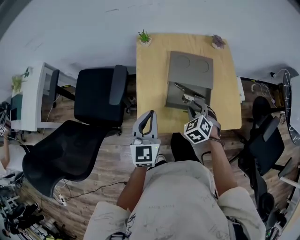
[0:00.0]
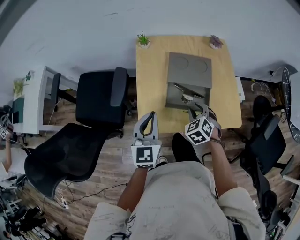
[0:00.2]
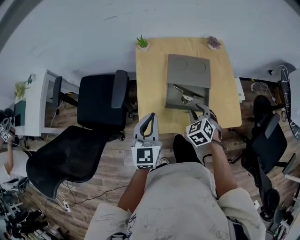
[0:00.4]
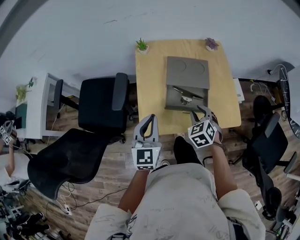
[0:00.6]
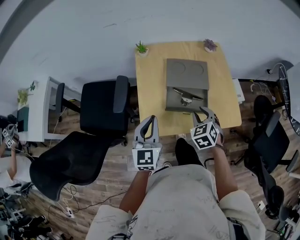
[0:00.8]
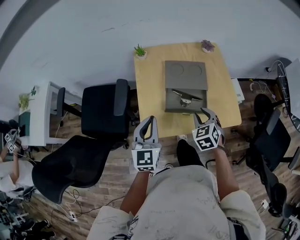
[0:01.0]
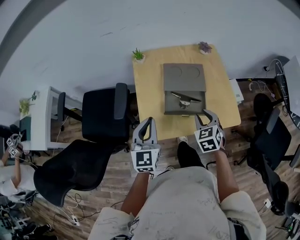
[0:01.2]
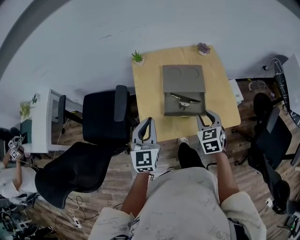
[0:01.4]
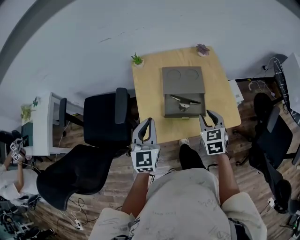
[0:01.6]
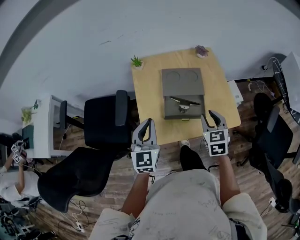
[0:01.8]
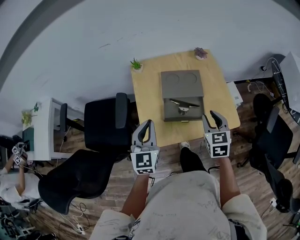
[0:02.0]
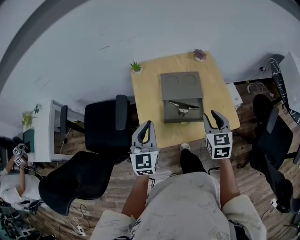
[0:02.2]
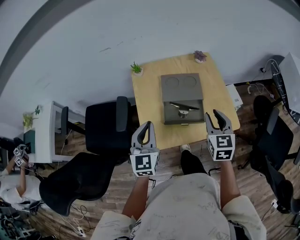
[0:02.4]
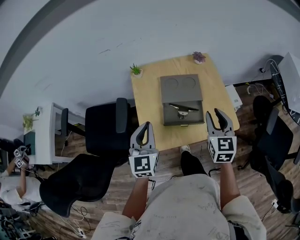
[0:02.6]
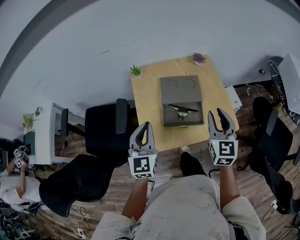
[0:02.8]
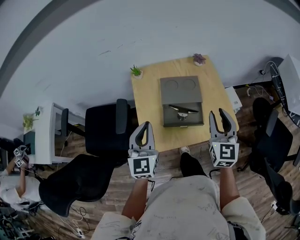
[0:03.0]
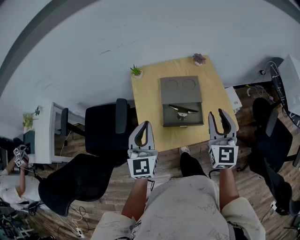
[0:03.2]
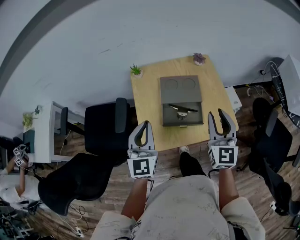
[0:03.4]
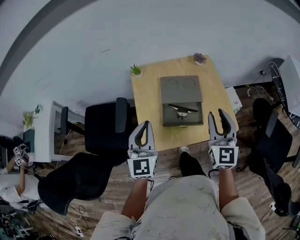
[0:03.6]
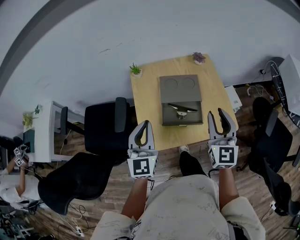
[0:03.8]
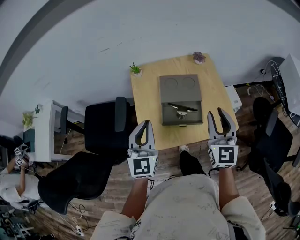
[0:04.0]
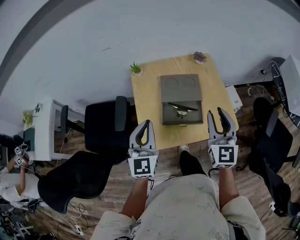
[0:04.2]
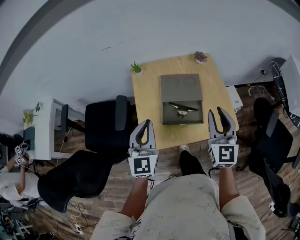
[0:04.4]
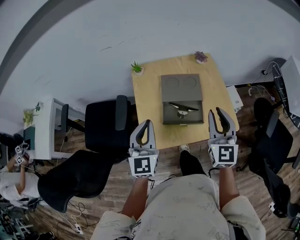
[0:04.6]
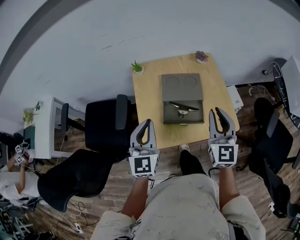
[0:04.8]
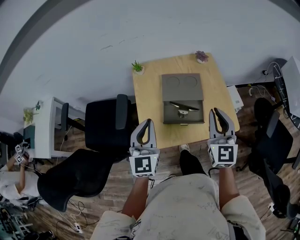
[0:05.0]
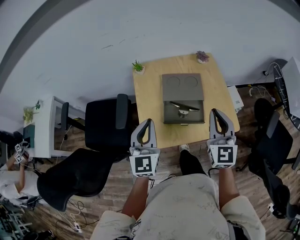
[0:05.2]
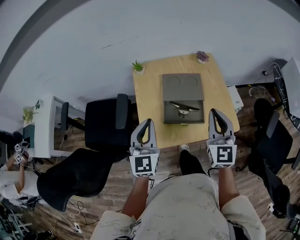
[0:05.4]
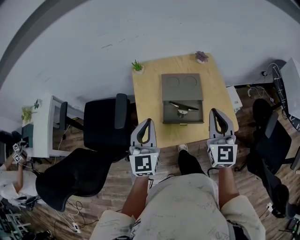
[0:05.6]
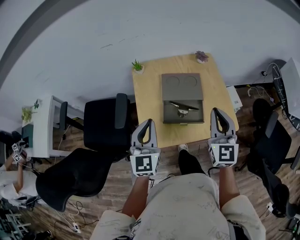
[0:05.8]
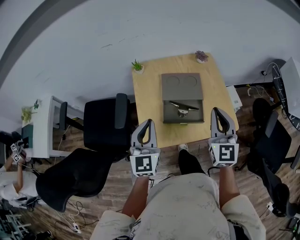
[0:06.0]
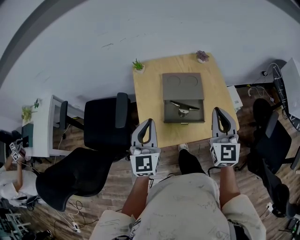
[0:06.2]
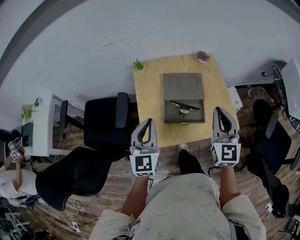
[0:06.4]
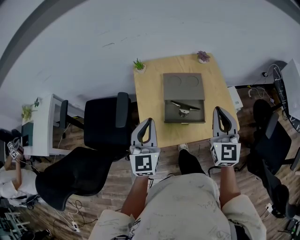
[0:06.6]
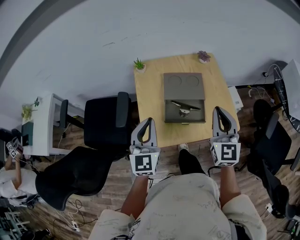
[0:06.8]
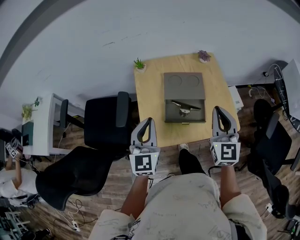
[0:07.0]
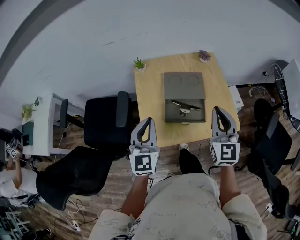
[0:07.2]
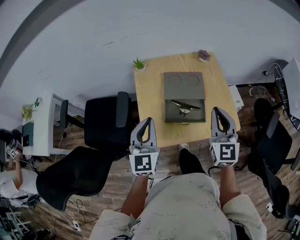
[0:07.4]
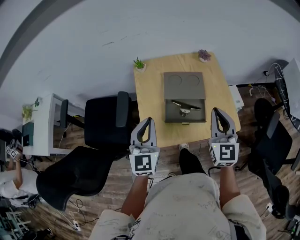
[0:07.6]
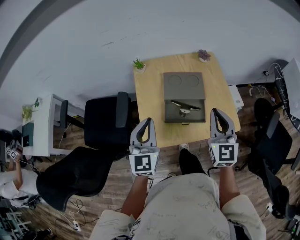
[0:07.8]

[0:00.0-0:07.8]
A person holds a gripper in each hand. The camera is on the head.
0:00.0 to 0:01.6: The right gripper is displaced upward and to the right by approximately 10 cm, and rotates about 40 degrees.
0:01.6 to 0:03.2: The left gripper travels upward by roughly 5 cm, while the right gripper travels upward by approximately 15 cm, and angles its fingers upward, by roughly 30 degrees.
0:03.2 to 0:04.6: Neither gripper changes place.
0:04.6 to 0:06.2: The two grippers keep their place.
0:06.2 to 0:07.8: The grippers stay close to where they were, moving slightly.

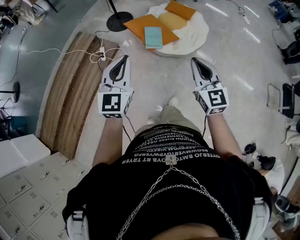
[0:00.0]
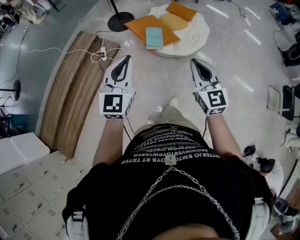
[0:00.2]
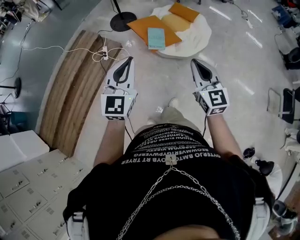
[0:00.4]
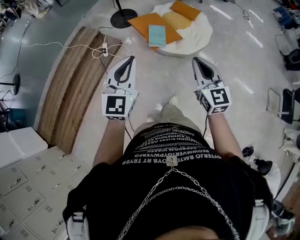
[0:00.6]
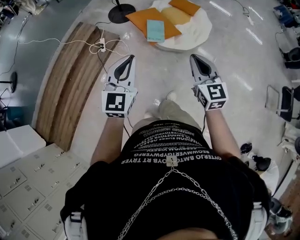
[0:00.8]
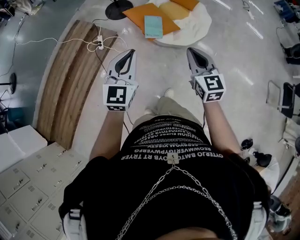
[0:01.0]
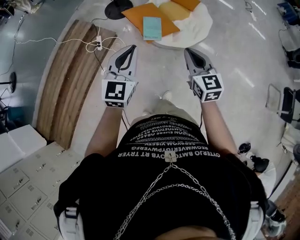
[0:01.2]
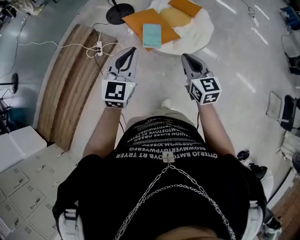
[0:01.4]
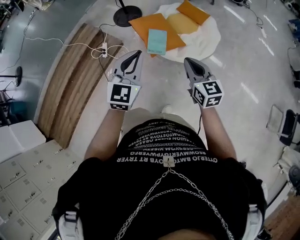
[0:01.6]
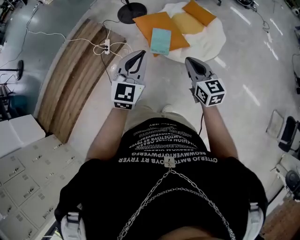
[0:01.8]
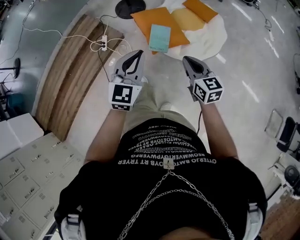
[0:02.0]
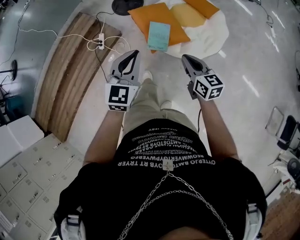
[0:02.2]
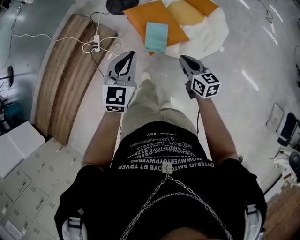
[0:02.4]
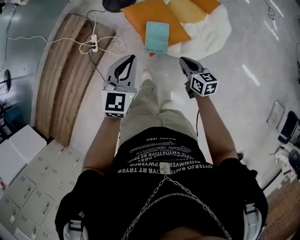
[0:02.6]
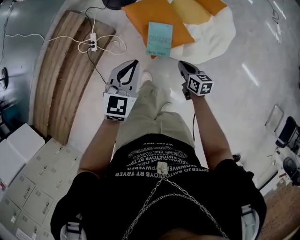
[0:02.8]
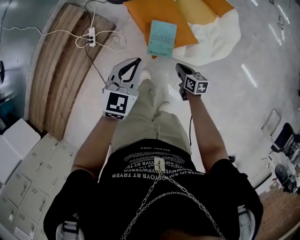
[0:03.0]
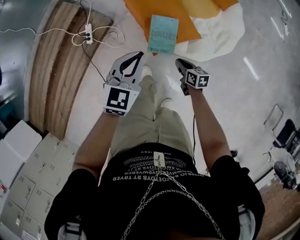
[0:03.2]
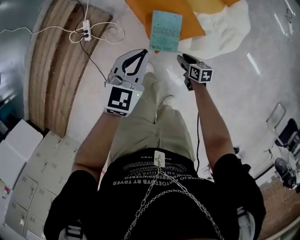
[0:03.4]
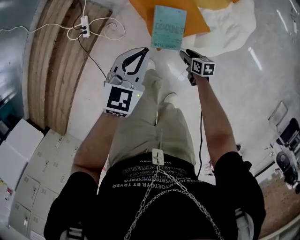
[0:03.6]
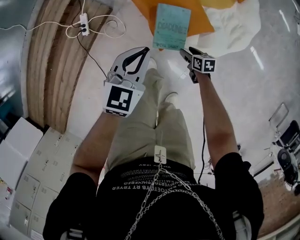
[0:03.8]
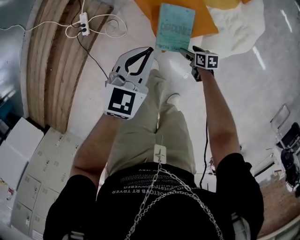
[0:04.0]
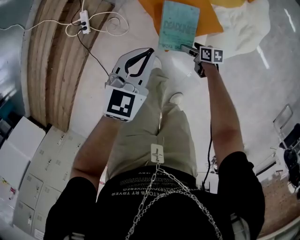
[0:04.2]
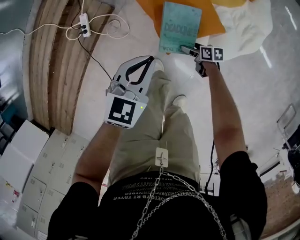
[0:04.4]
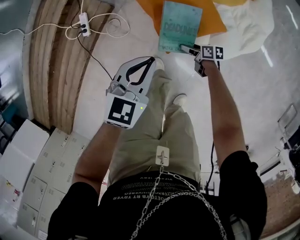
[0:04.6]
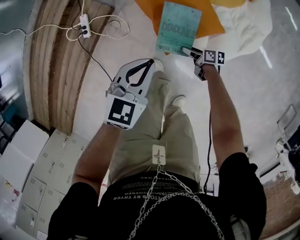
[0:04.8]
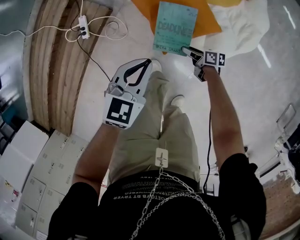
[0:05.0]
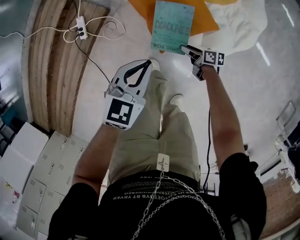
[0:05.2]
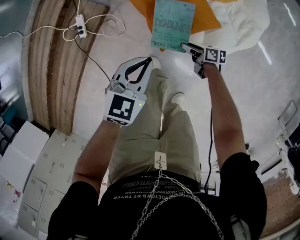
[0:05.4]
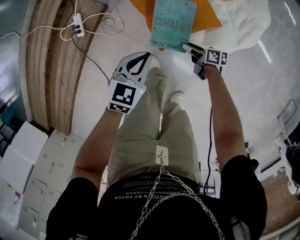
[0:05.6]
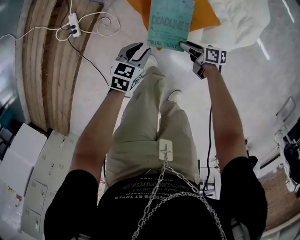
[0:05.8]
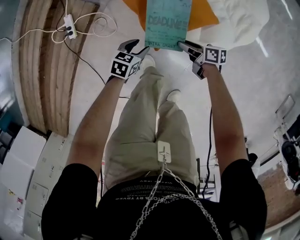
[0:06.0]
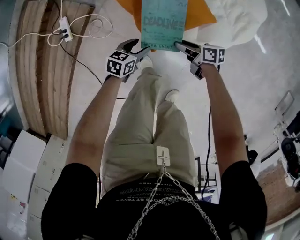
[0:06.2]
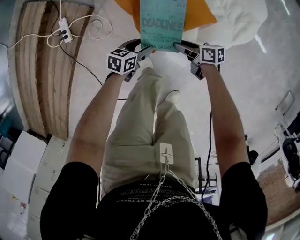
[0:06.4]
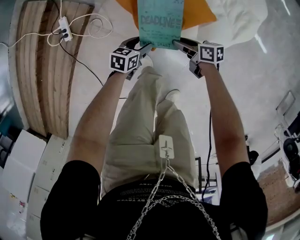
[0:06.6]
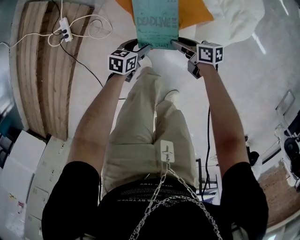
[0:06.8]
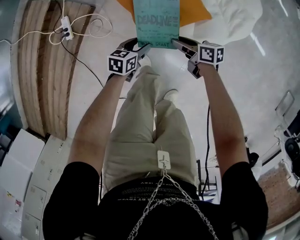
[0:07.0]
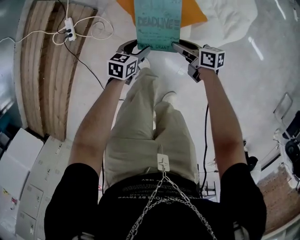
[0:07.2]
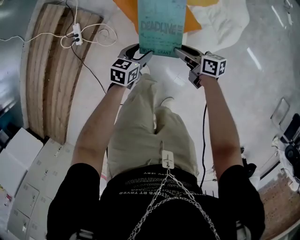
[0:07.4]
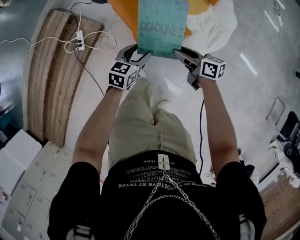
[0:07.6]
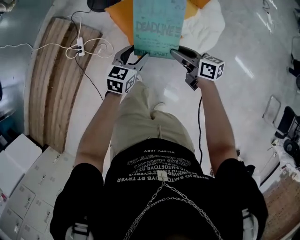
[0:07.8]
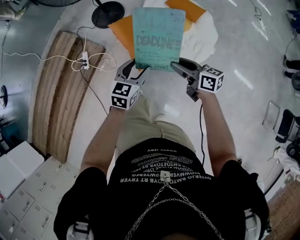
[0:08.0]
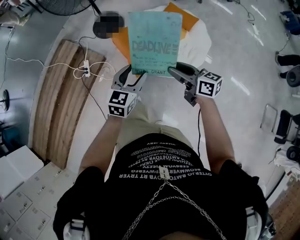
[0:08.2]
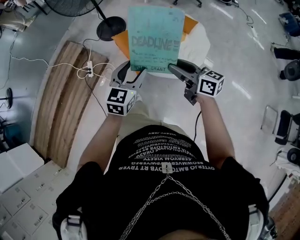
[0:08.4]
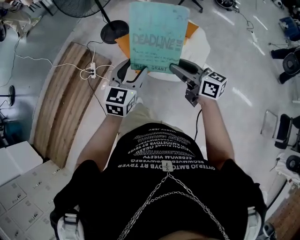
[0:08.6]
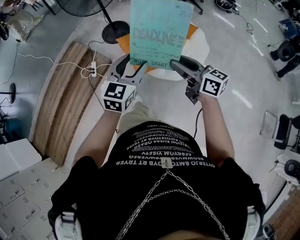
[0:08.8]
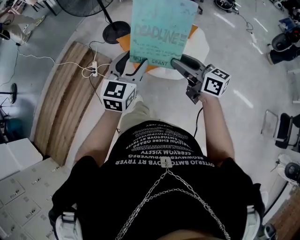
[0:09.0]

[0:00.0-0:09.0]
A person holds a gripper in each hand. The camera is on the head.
0:00.0 to 0:01.6: The left gripper heads forward and to the right, covering approximately 20 cm, while the right gripper is displaced forward and downward by some 20 cm.
0:01.6 to 0:03.0: The left gripper moves forward and downward, some 35 cm. Meanwhile the right gripper heads downward and forward, covering approximately 50 cm, and swivels approximately 40 degrees.
0:03.0 to 0:04.4: The grippers both shift downward by some 25 cm. The right gripper turns by some 20 degrees, and opens up.
0:04.4 to 0:06.0: The right gripper closes its fingers. Meanwhile the left gripper travels downward by approximately 25 cm, swivels some 30 degrees, and opens up.
0:06.0 to 0:07.6: The two grippers go some 30 cm upward. The right gripper turns by approximately 20 degrees. Meanwhile the left gripper turns by approximately 20 degrees.
0:07.6 to 0:09.0: Both grippers move upward and backward, about 50 cm. The left gripper turns by approximately 30 degrees. The right gripper swivels about 30 degrees.

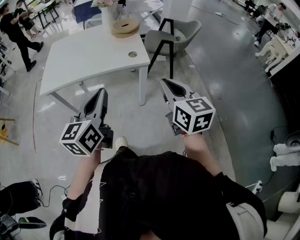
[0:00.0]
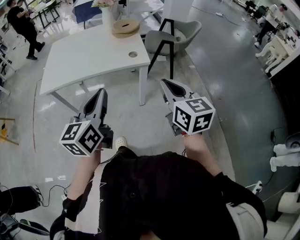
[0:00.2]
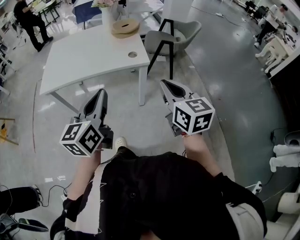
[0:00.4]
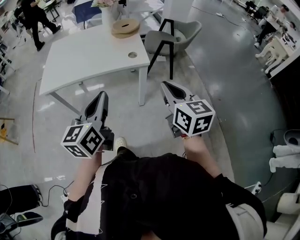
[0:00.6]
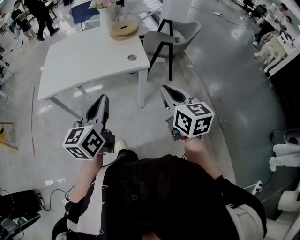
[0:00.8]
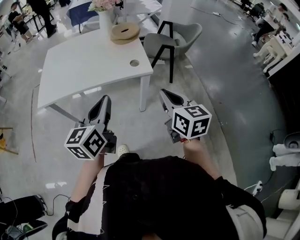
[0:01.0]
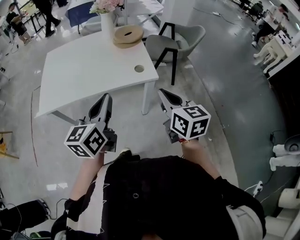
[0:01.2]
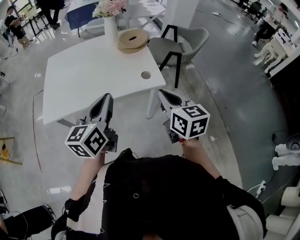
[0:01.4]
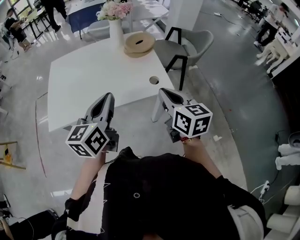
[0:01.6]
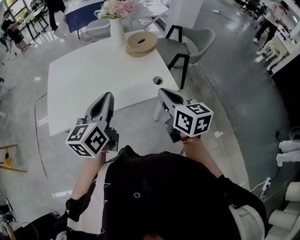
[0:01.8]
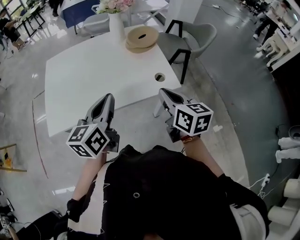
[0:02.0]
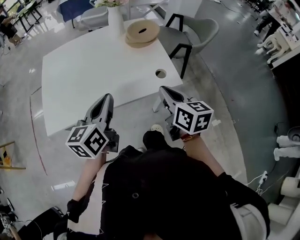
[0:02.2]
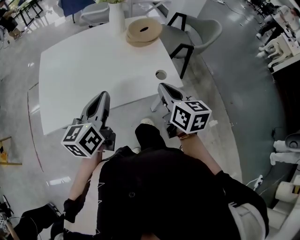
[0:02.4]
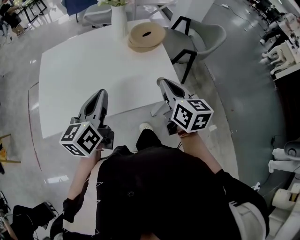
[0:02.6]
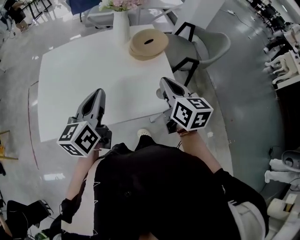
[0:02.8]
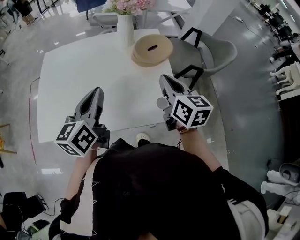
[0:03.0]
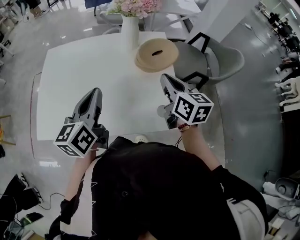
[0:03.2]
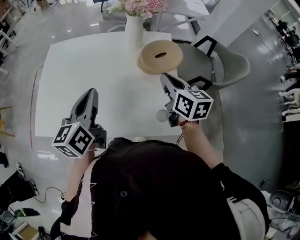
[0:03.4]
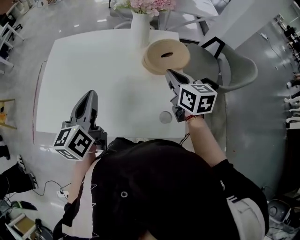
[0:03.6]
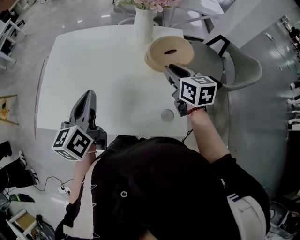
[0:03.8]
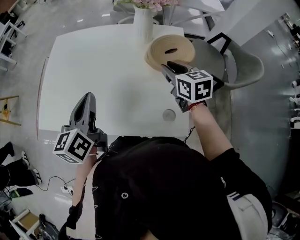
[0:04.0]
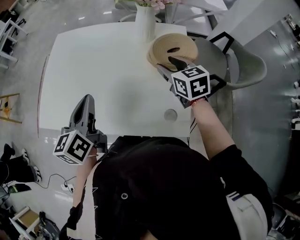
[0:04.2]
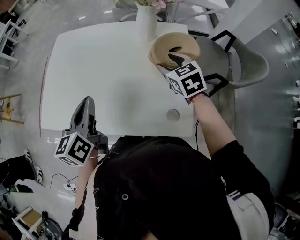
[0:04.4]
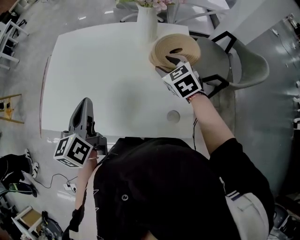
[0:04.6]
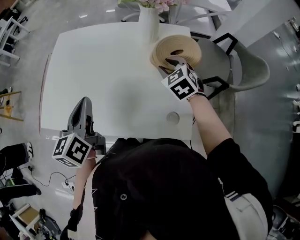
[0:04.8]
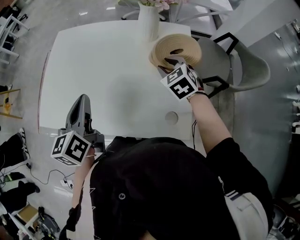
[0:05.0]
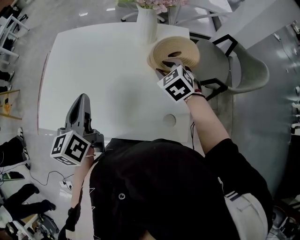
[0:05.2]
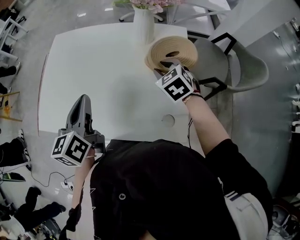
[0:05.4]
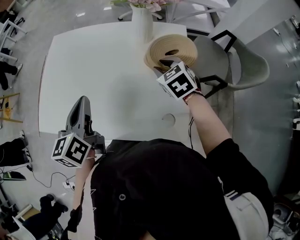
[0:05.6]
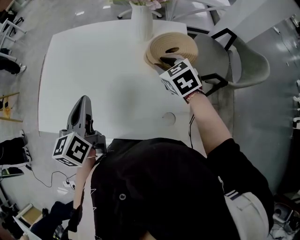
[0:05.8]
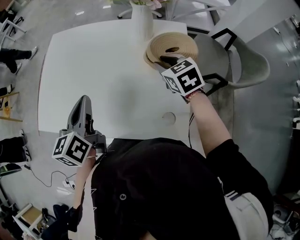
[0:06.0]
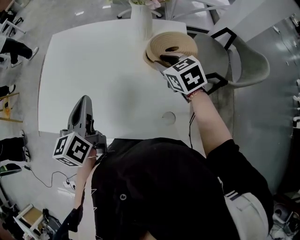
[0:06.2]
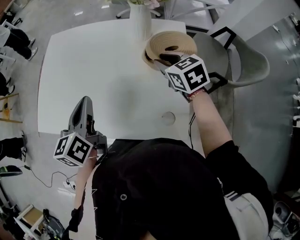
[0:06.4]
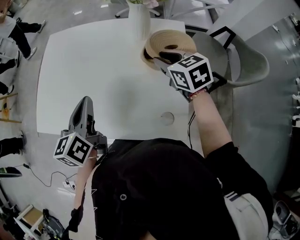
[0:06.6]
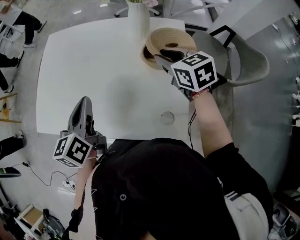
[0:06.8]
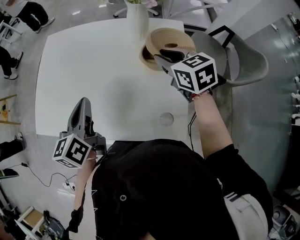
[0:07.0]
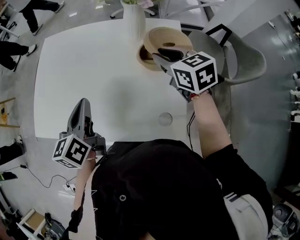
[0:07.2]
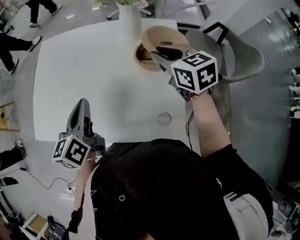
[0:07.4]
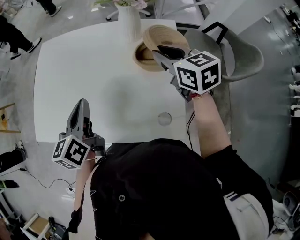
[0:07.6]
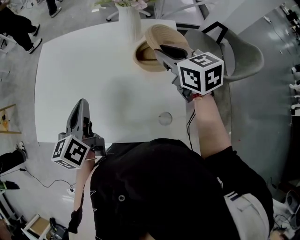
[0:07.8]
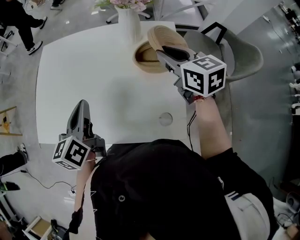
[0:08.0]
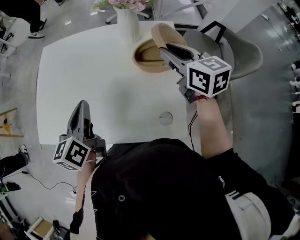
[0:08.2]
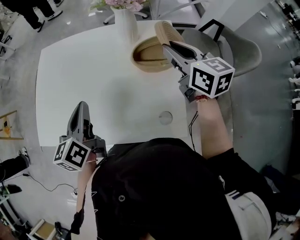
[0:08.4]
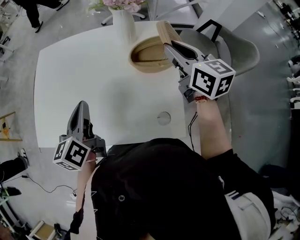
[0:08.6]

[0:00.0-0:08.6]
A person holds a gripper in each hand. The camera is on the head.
0:00.0 to 0:01.4: The two grippers go about 20 cm forward and to the left.
0:01.4 to 0:02.8: The left gripper moves forward and to the left, roughly 20 cm. Meanwhile the right gripper goes approximately 20 cm forward.
0:02.8 to 0:04.4: The left gripper changes place by about 5 cm, and swivels approximately 30 degrees; the right gripper shifts by some 25 cm, rotates roughly 50 degrees, and opens up.
0:04.4 to 0:05.8: The right gripper closes its fingers.
0:05.8 to 0:07.2: The right gripper goes about 5 cm upward.
0:07.2 to 0:08.6: The right gripper goes roughly 10 cm upward and to the right, and changes its angle by about 20 degrees.
